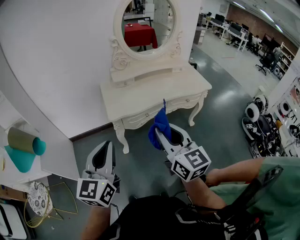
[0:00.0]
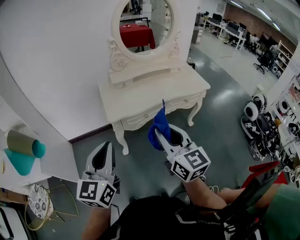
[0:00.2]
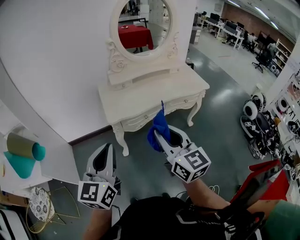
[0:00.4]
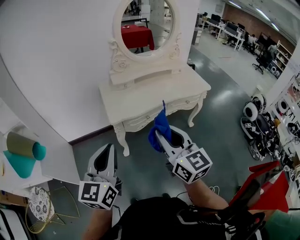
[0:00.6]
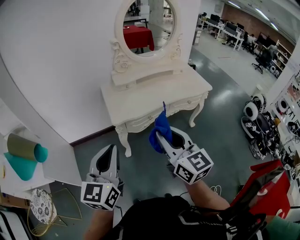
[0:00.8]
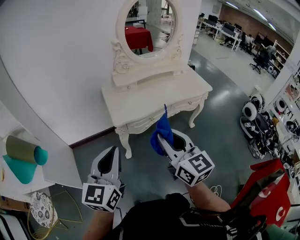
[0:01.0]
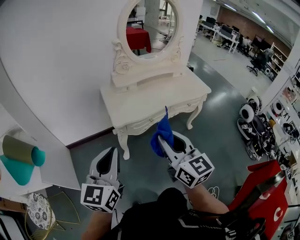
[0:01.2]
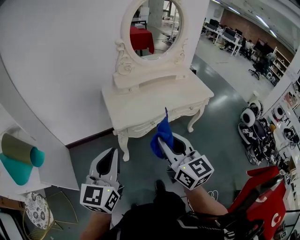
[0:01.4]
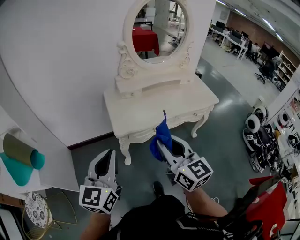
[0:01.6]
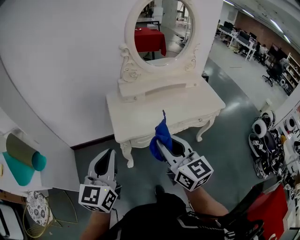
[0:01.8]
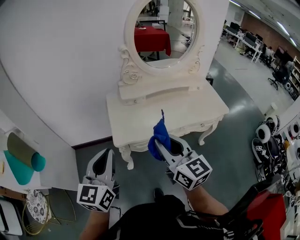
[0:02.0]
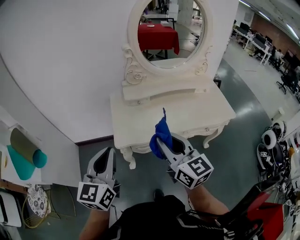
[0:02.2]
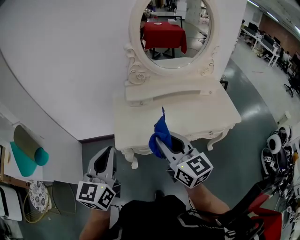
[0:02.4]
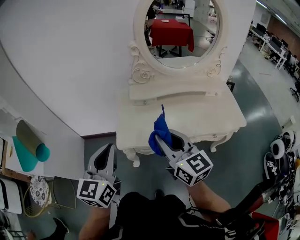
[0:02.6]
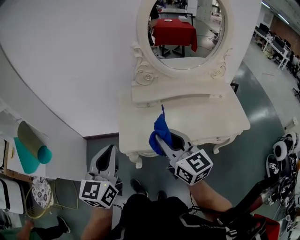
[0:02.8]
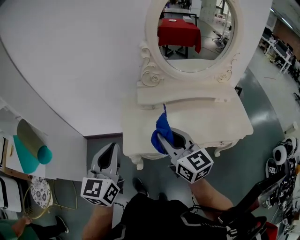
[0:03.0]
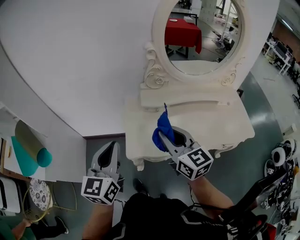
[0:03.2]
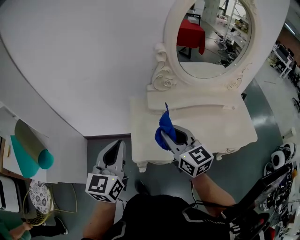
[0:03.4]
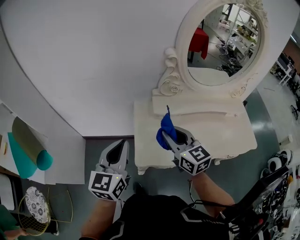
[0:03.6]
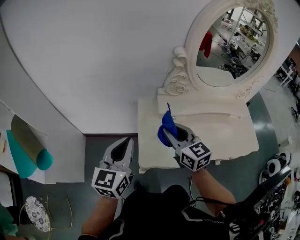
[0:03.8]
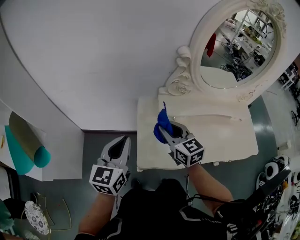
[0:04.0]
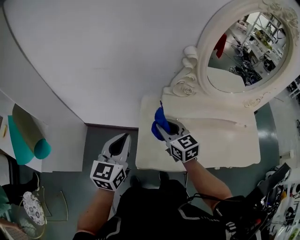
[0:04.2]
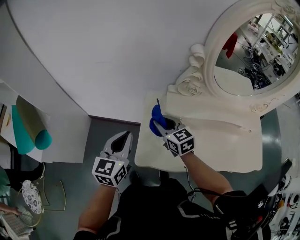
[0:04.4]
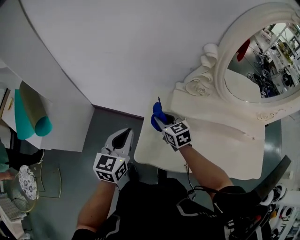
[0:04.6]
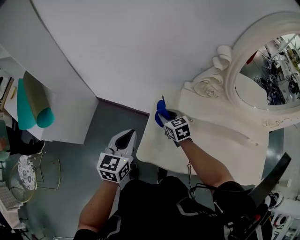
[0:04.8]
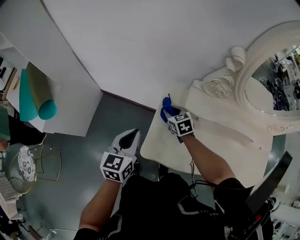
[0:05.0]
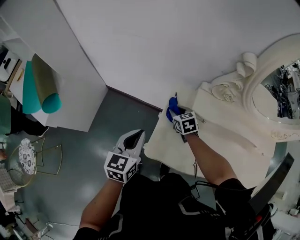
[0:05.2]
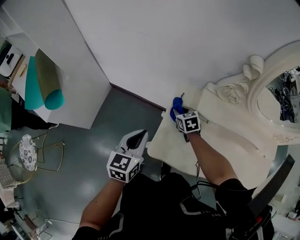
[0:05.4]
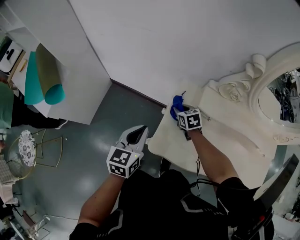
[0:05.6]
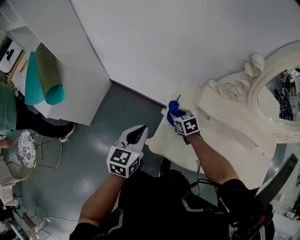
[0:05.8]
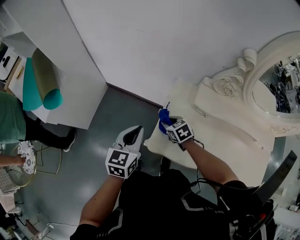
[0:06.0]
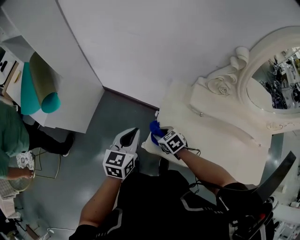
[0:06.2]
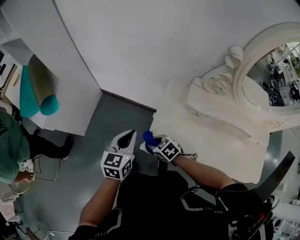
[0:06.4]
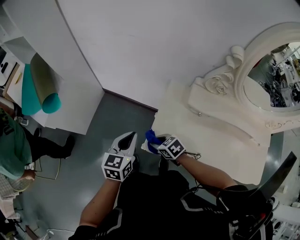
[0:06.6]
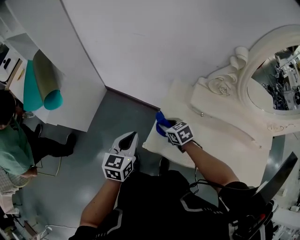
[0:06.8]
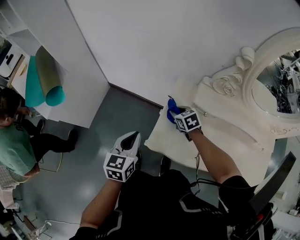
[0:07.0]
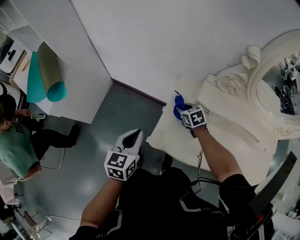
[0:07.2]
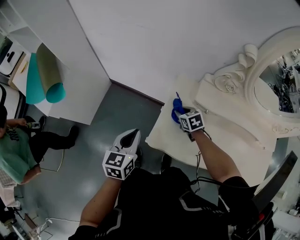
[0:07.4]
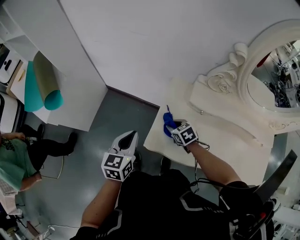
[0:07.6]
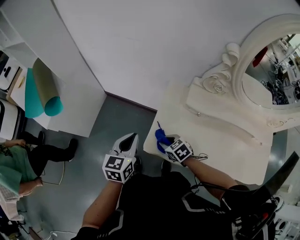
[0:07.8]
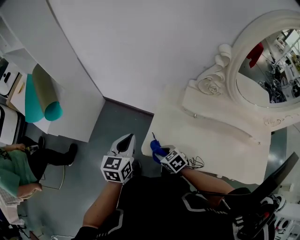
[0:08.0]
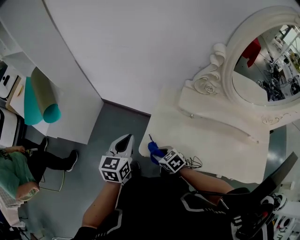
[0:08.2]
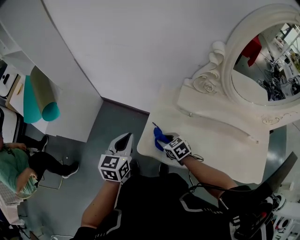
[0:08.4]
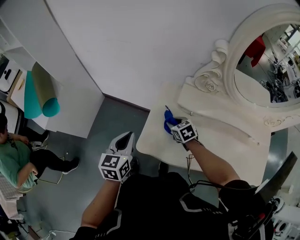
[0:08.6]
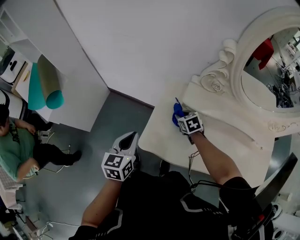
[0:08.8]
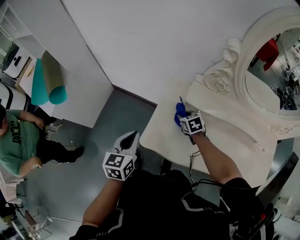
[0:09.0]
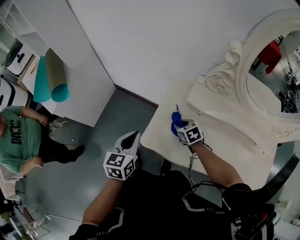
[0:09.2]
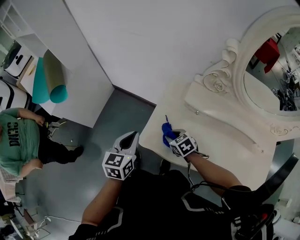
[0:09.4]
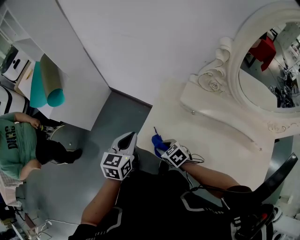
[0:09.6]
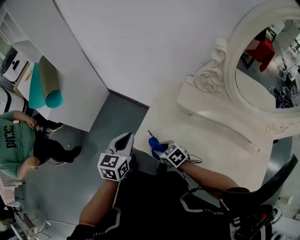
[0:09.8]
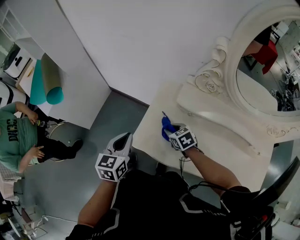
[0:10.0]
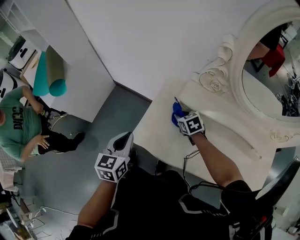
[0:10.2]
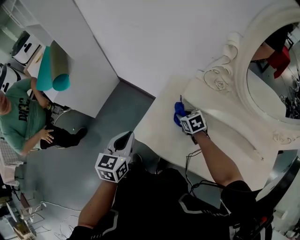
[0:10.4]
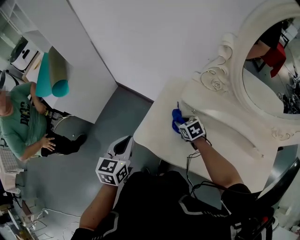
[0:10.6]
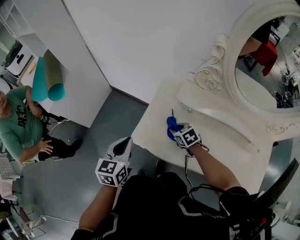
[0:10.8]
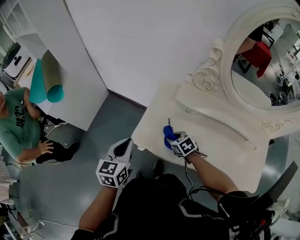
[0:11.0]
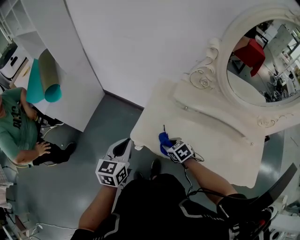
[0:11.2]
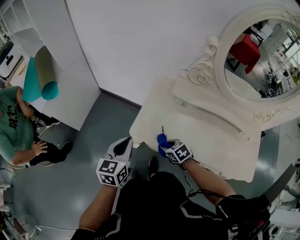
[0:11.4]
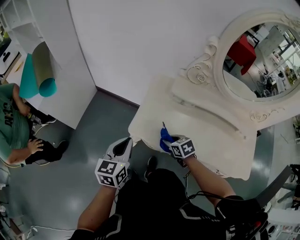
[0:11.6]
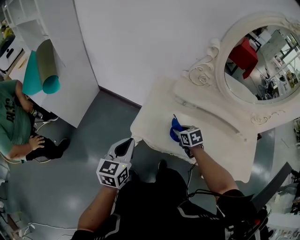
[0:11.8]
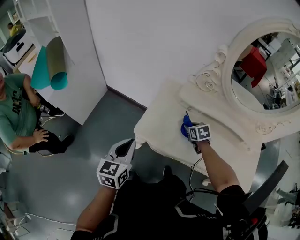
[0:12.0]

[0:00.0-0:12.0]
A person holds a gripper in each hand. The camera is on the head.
0:00.0 to 0:01.6: Both grippers move forward and to the left, roughly 10 cm.
0:01.6 to 0:03.0: The two grippers go roughly 20 cm forward.
0:03.0 to 0:04.4: The right gripper moves forward, downward and to the left, approximately 30 cm, and rotates about 30 degrees. Meanwhile the left gripper heads forward and downward, covering approximately 20 cm.
0:04.4 to 0:06.0: The left gripper moves downward and to the left, approximately 10 cm; the right gripper is displaced downward and to the left by roughly 20 cm, and rotates some 40 degrees.
0:06.0 to 0:07.6: The right gripper moves left and right over roughly 15 cm, changing direction 2 times.
0:07.6 to 0:09.0: The right gripper shifts approximately 10 cm to the right.
0:09.0 to 0:10.4: The right gripper goes backward and returns, some 15 cm each way.
0:10.4 to 0:12.0: The right gripper goes roughly 10 cm backward and to the right, while the left gripper travels backward by roughly 10 cm.

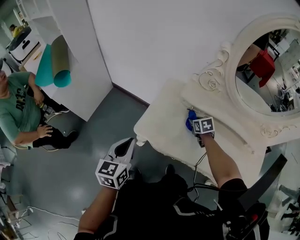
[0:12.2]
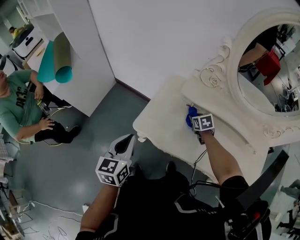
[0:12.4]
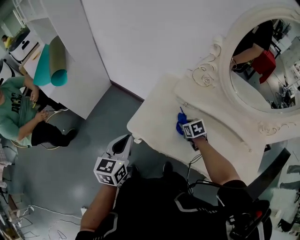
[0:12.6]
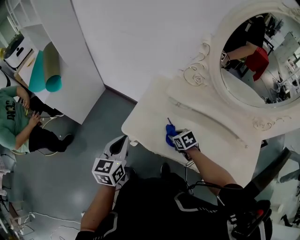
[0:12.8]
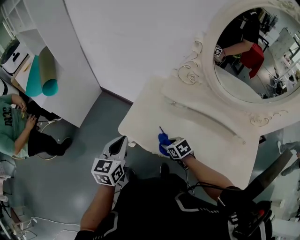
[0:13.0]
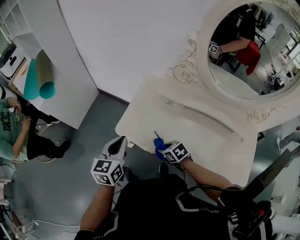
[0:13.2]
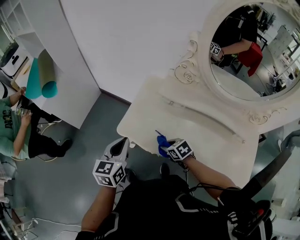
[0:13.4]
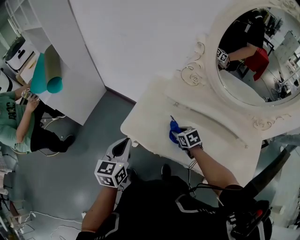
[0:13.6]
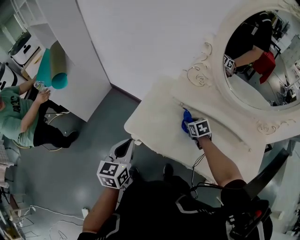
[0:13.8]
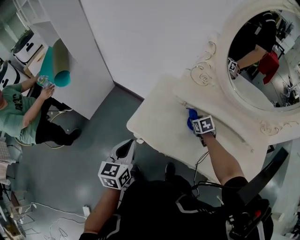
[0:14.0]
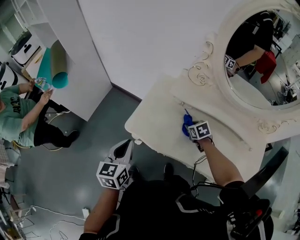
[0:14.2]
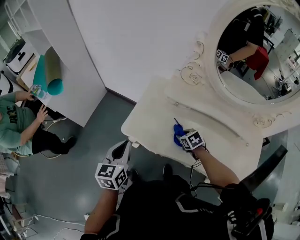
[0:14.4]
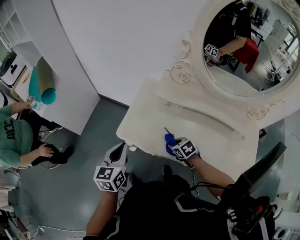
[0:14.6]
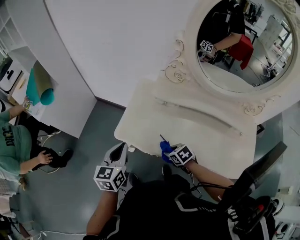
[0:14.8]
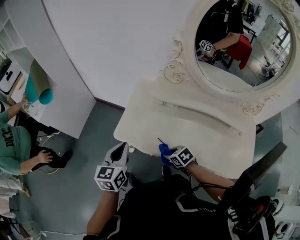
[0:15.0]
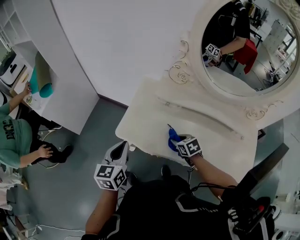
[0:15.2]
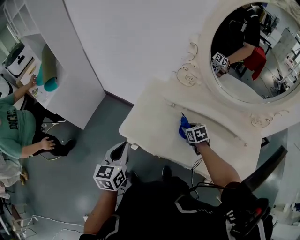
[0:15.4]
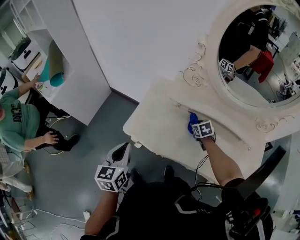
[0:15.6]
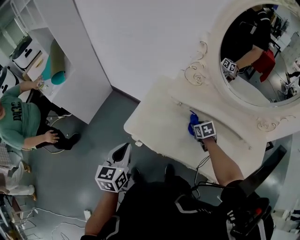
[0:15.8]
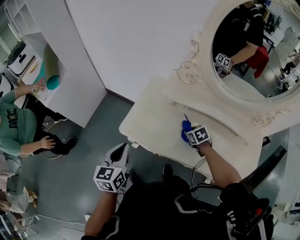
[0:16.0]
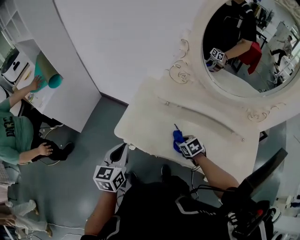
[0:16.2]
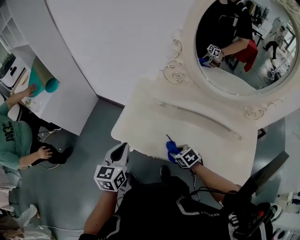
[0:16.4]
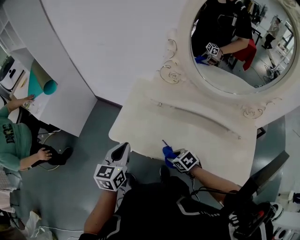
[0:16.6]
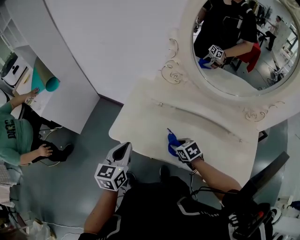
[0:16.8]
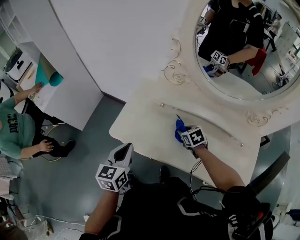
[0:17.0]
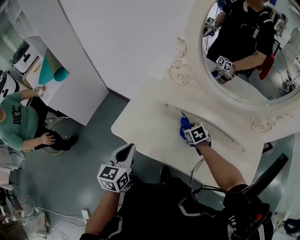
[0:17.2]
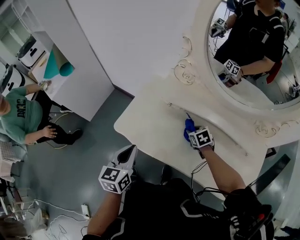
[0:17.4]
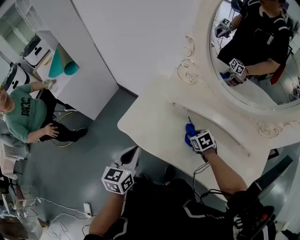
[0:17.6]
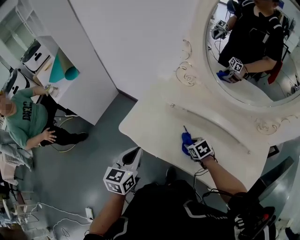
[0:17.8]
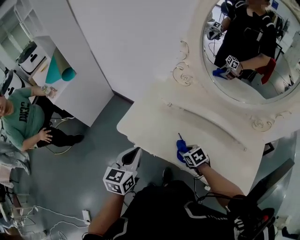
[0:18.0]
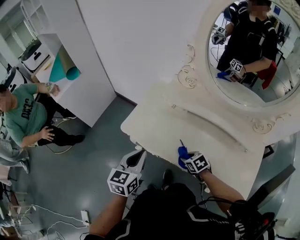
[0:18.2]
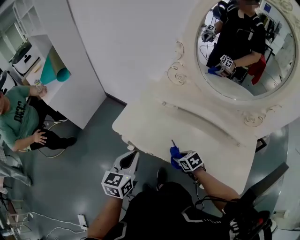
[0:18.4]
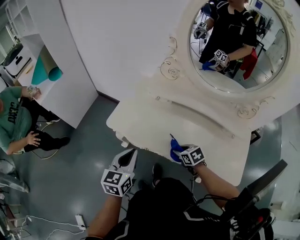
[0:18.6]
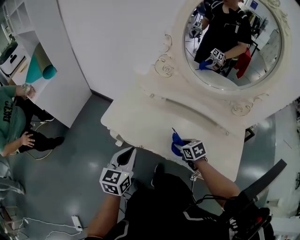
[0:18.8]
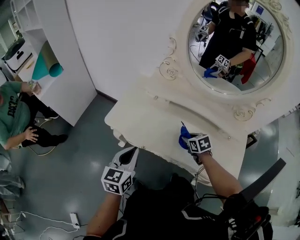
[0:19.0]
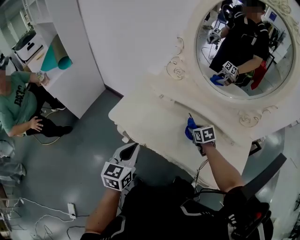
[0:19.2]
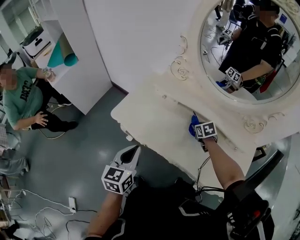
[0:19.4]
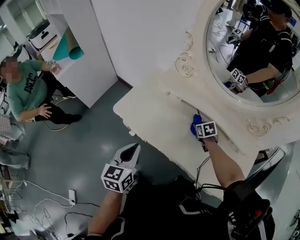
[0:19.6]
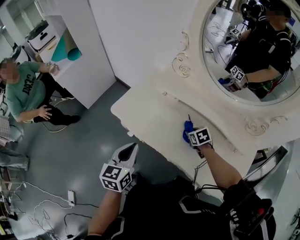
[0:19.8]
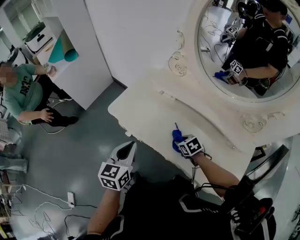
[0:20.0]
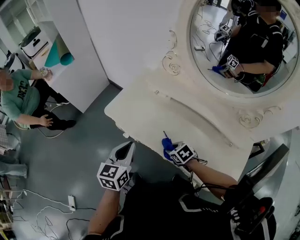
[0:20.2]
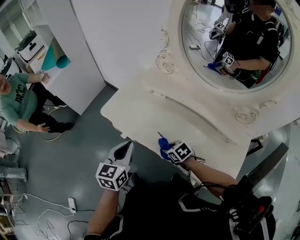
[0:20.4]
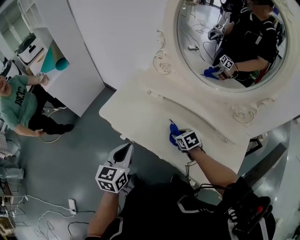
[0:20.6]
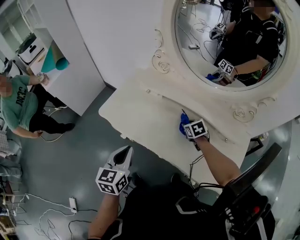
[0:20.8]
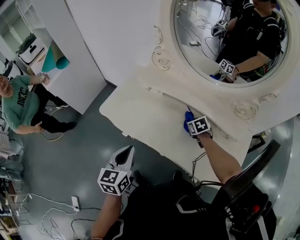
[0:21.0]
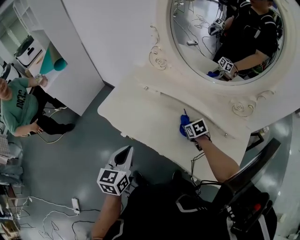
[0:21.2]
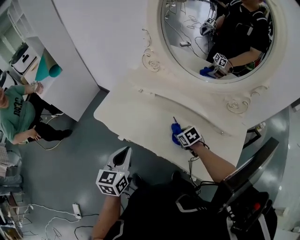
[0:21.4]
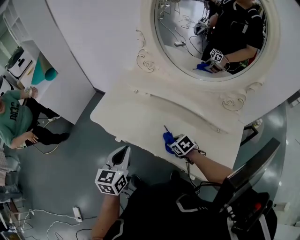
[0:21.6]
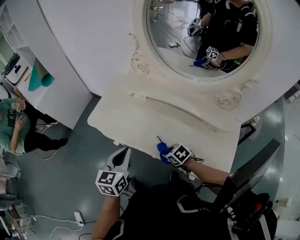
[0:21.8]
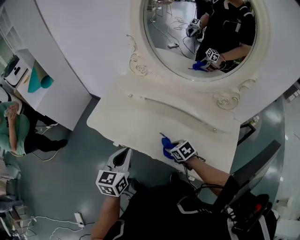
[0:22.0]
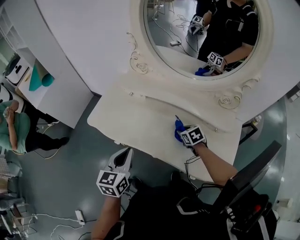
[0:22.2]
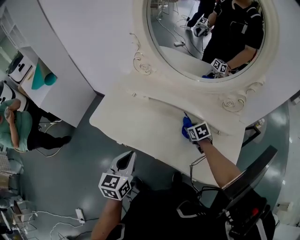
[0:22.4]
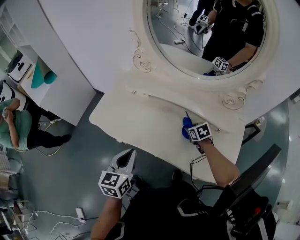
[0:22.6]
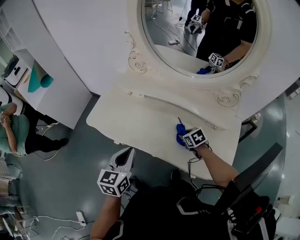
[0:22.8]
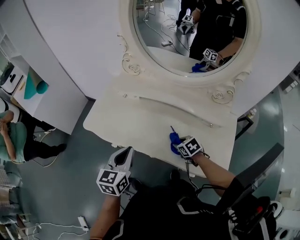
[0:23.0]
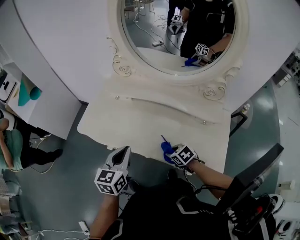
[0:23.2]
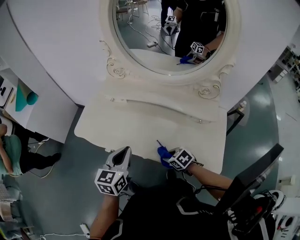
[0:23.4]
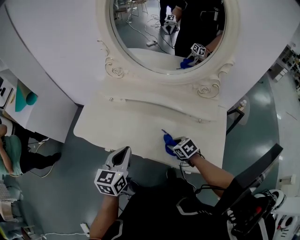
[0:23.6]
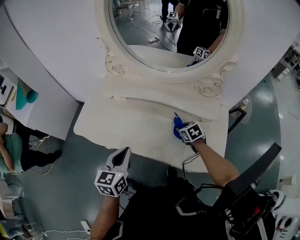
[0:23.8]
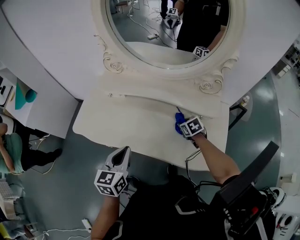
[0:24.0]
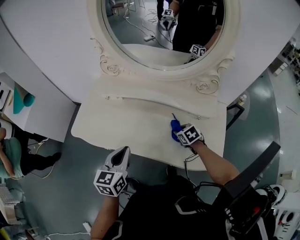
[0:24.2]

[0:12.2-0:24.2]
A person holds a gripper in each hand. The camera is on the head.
0:12.2 to 0:13.8: The right gripper reaches some 20 cm backward, then returns. Meanwhile the left gripper moves to the right, about 5 cm.
0:13.8 to 0:15.2: The right gripper travels backward and to the left by some 10 cm.
0:15.2 to 0:16.6: The left gripper heads to the right, covering some 5 cm. The right gripper travels backward by roughly 10 cm.
0:16.6 to 0:18.2: The left gripper heads backward, covering approximately 10 cm, while the right gripper shifts roughly 5 cm to the right, and goes forward and returns, about 15 cm each way.
0:18.2 to 0:19.8: The right gripper goes roughly 15 cm to the right and forward. The left gripper ends up some 5 cm from where it was.
0:19.8 to 0:21.2: The right gripper moves approximately 10 cm to the left and comes back; the left gripper ends up roughly 5 cm from where it was.
0:21.2 to 0:22.6: The two grippers go about 5 cm to the right.
0:22.6 to 0:24.2: The right gripper moves backward, roughly 5 cm, while the left gripper shifts roughly 5 cm to the right.
